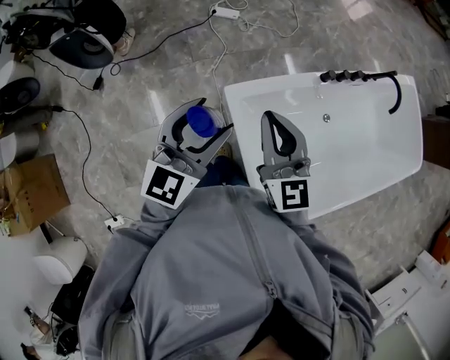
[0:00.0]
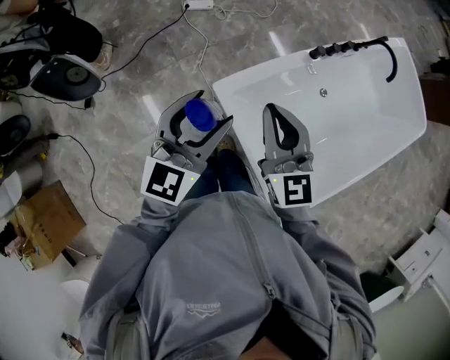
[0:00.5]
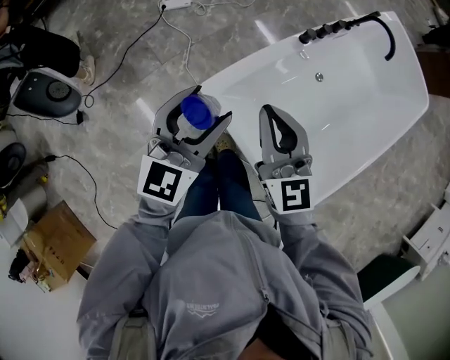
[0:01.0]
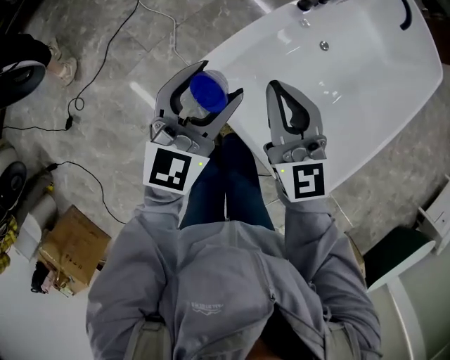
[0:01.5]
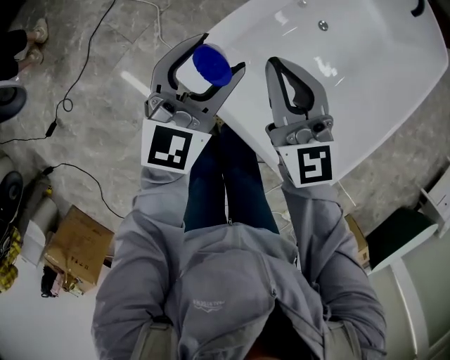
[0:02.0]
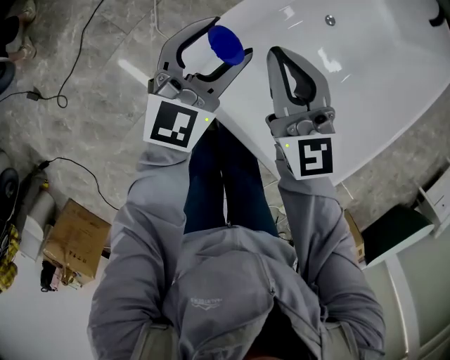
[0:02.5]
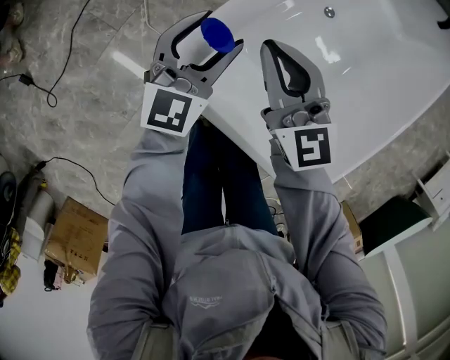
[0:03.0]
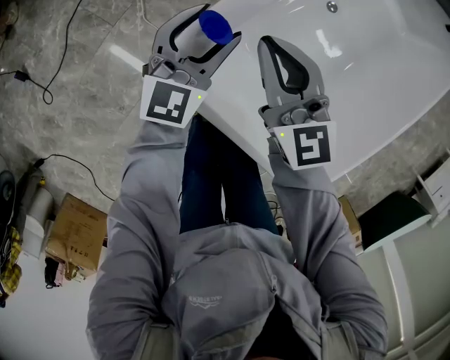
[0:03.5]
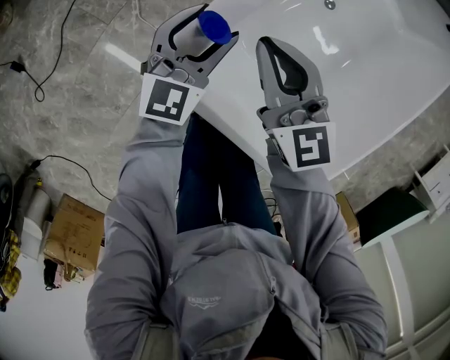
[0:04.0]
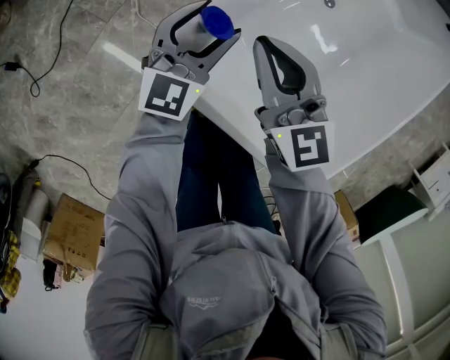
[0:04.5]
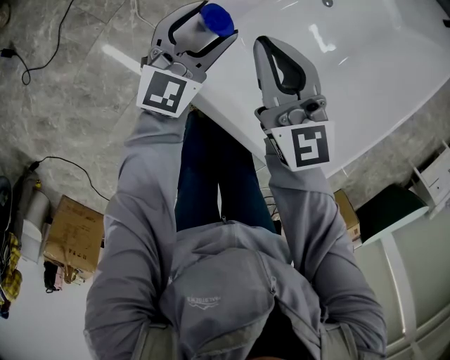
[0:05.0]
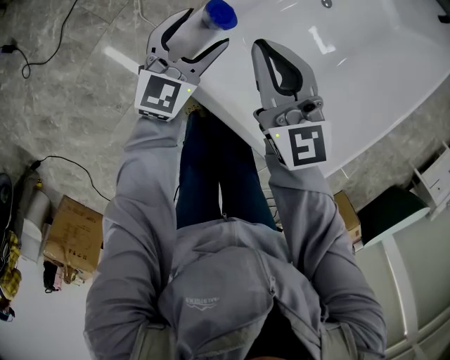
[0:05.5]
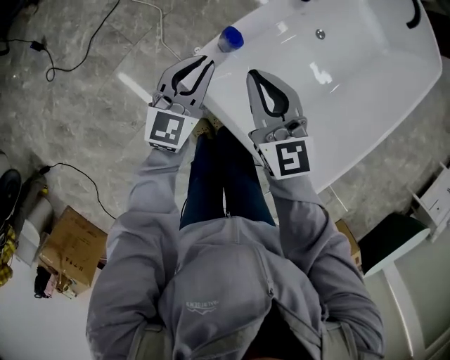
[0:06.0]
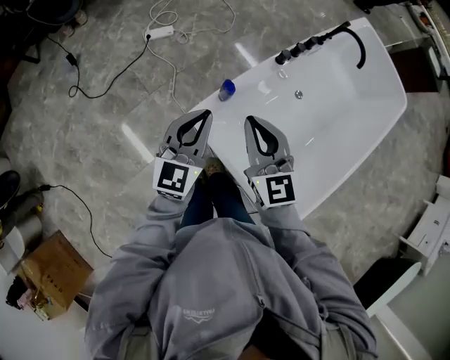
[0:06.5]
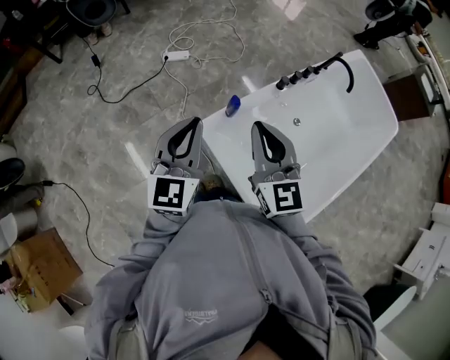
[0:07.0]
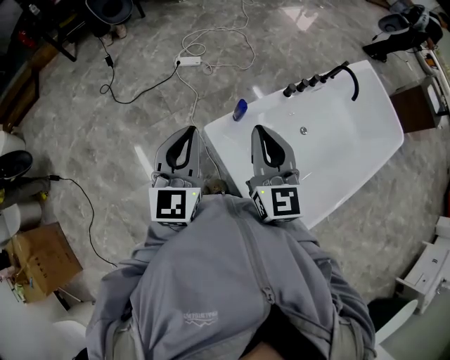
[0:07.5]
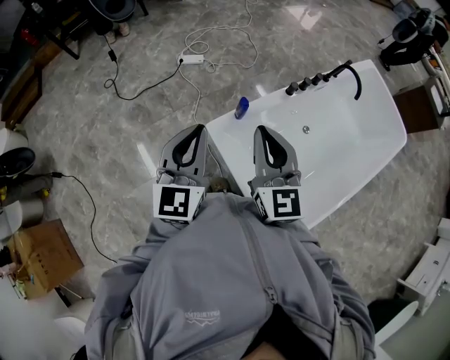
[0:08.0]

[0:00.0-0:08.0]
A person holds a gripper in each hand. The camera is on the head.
0:00.0 to 0:02.0: The grippers both shift downward, forward and to the right by some 25 cm. The right gripper rotates some 20 degrees, while the left gripper turns by approximately 30 degrees.
0:02.0 to 0:04.0: Both grippers move downward and forward, some 15 cm.
0:04.0 to 0:06.0: The left gripper moves upward, to the left and backward, roughly 10 cm, and closes up; the right gripper heads upward and backward, covering some 10 cm.
0:06.0 to 0:08.0: Both grippers travel together upward and backward, roughly 35 cm. The left gripper changes its angle by some 30 degrees.

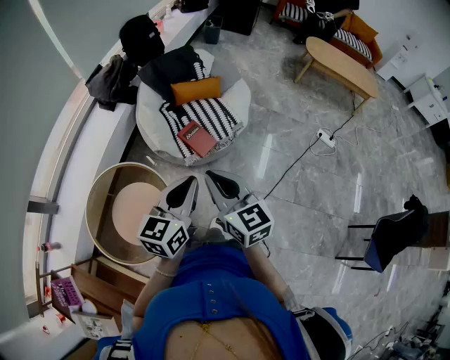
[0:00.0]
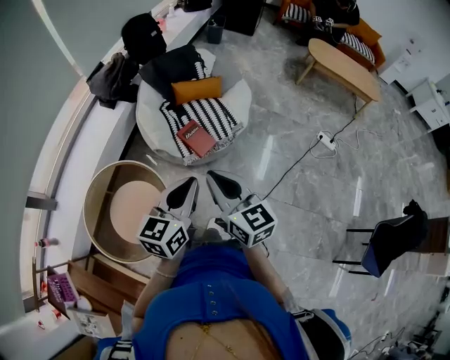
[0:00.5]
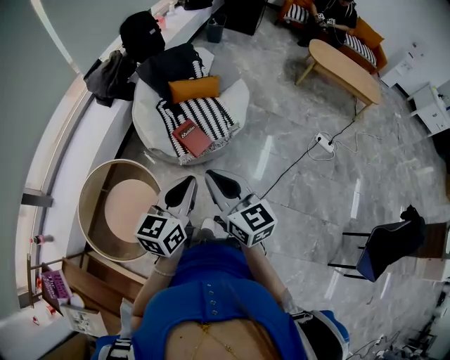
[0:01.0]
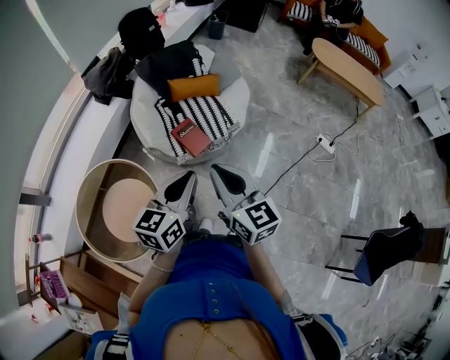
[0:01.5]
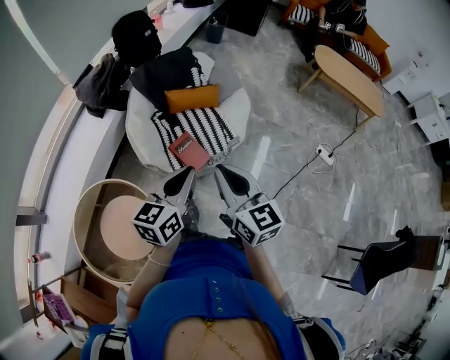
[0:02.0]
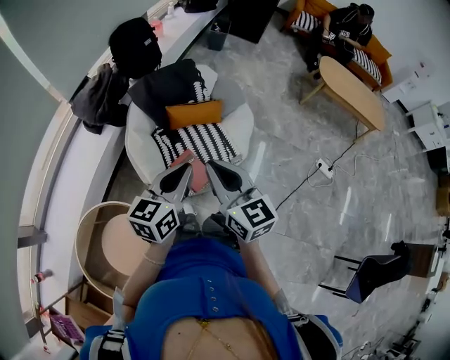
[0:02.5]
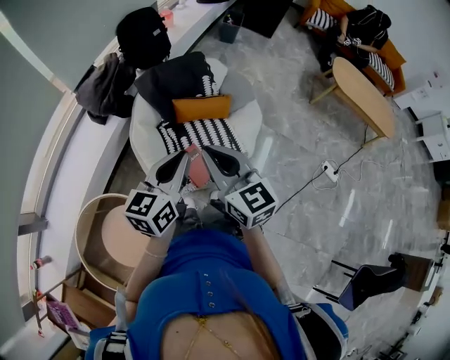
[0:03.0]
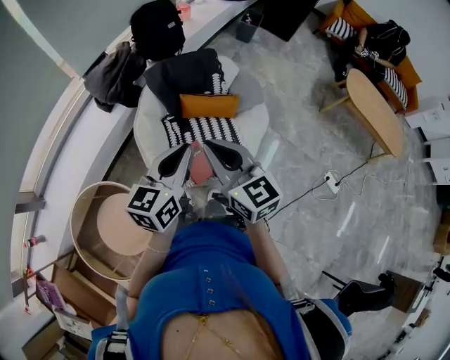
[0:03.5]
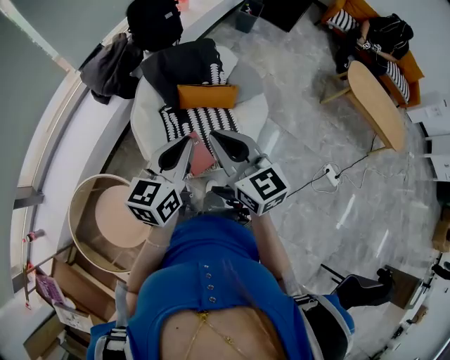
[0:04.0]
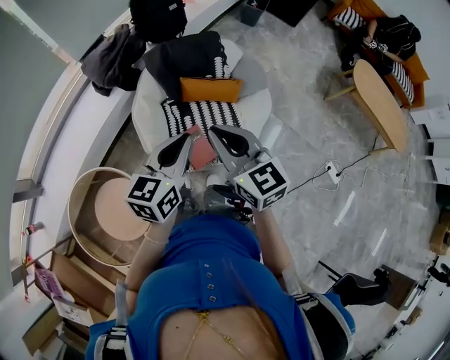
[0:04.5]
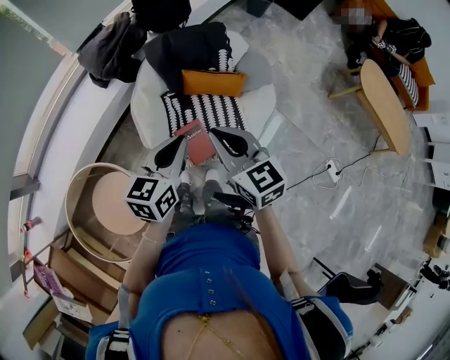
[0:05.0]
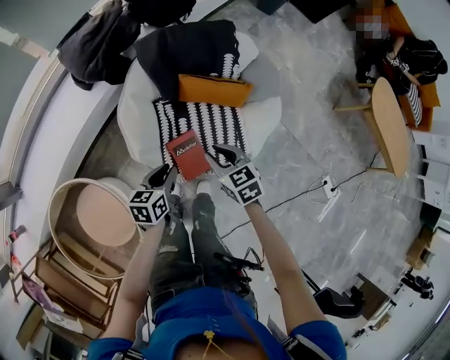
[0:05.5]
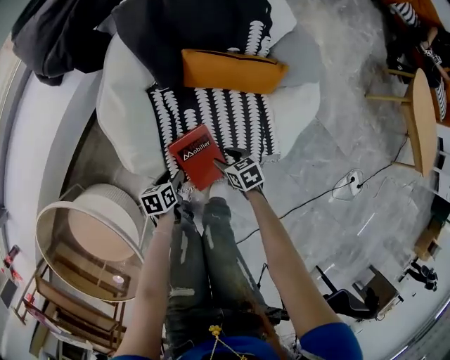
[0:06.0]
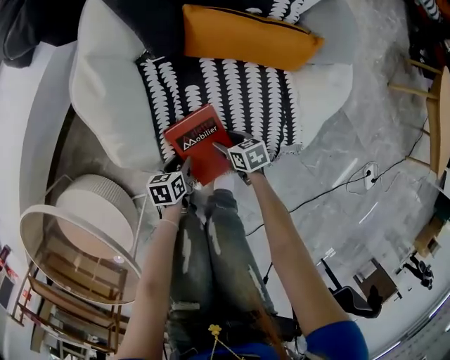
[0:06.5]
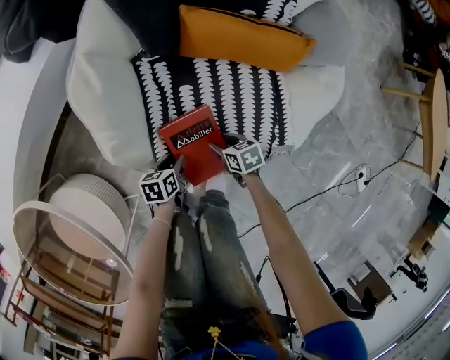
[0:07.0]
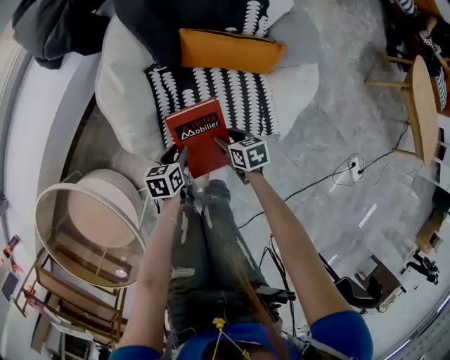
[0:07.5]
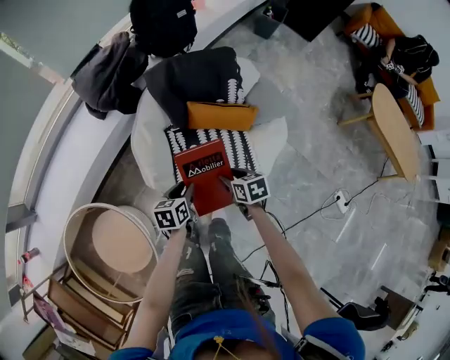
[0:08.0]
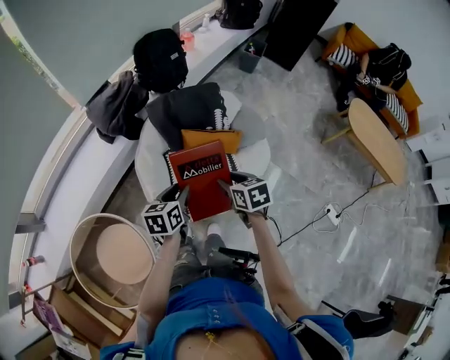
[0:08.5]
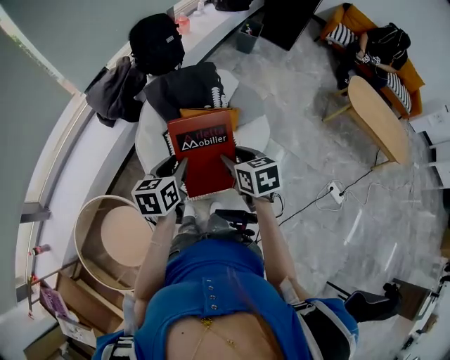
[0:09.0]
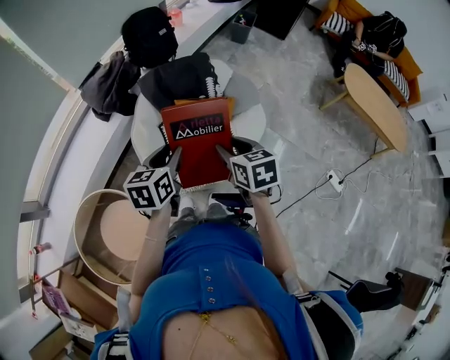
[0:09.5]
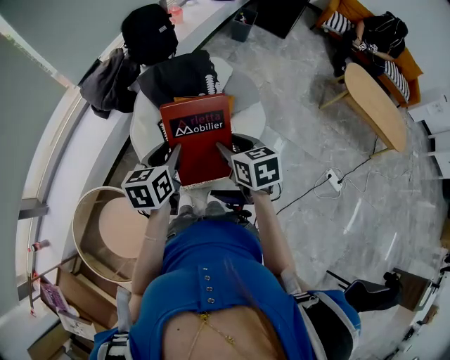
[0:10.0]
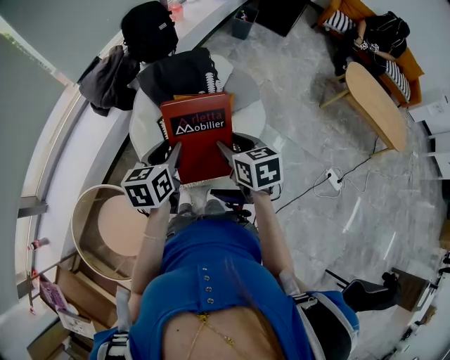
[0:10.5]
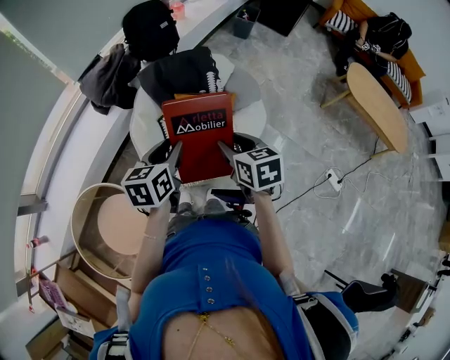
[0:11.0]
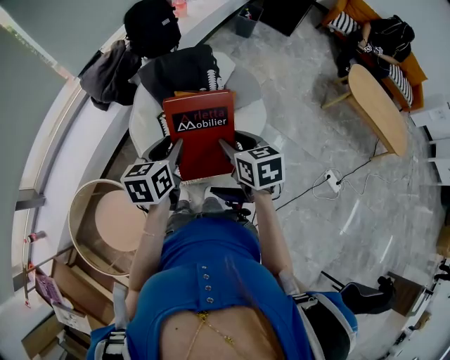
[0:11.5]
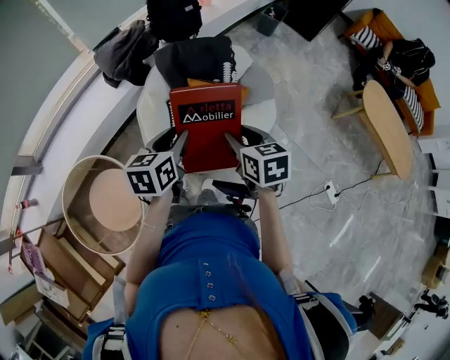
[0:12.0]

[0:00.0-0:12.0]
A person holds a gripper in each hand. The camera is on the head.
0:00.0 to 0:02.0: The two grippers go some 20 cm forward.
0:02.0 to 0:04.0: Both grippers move forward, approximately 25 cm.
0:04.0 to 0:06.0: Both grippers travel together downward, roughly 70 cm. The right gripper angles its fingers downward, by some 50 degrees, and opens its fingers; the left gripper tips its fingers downward by approximately 50 degrees, and opens its fingers.
0:06.0 to 0:08.0: The grippers both shift upward by roughly 30 cm.
0:08.0 to 0:10.0: Both grippers move upward, approximately 30 cm. The right gripper turns by about 20 degrees.
0:10.0 to 0:12.0: The grippers move only a little.

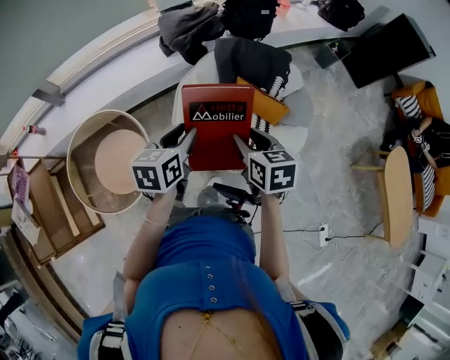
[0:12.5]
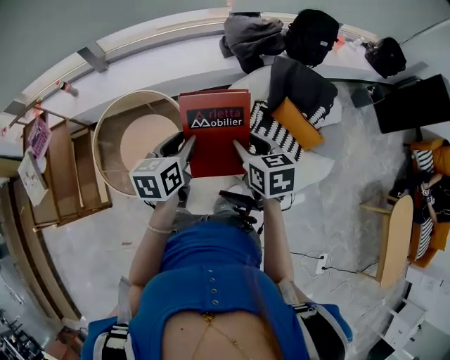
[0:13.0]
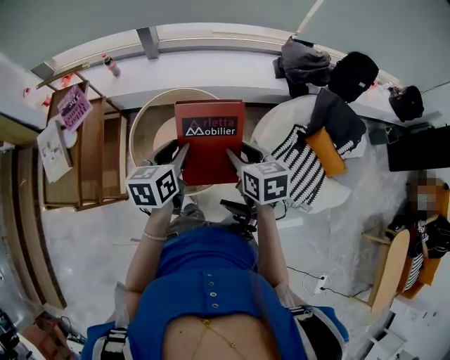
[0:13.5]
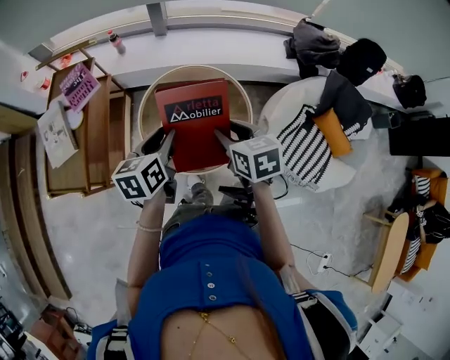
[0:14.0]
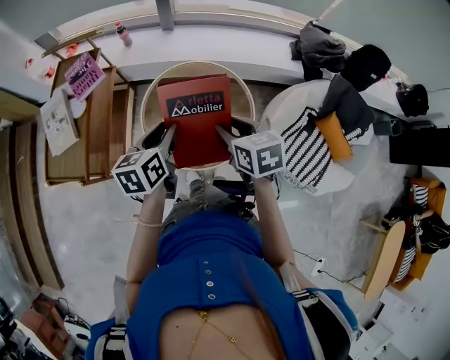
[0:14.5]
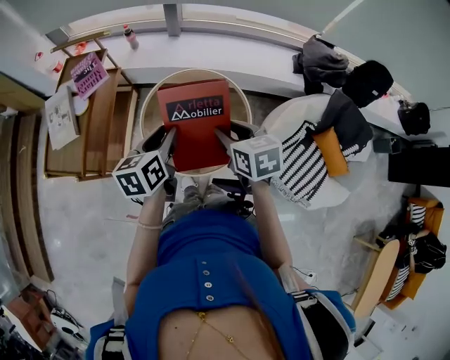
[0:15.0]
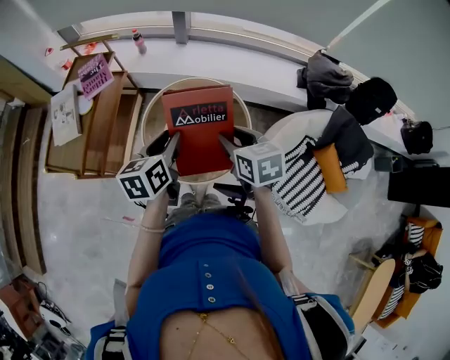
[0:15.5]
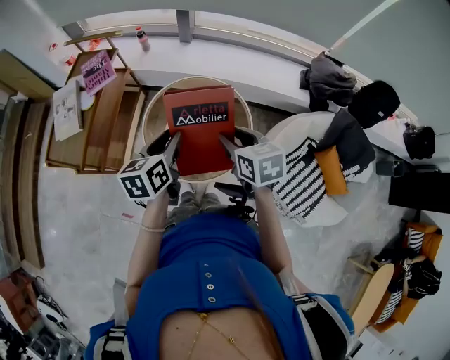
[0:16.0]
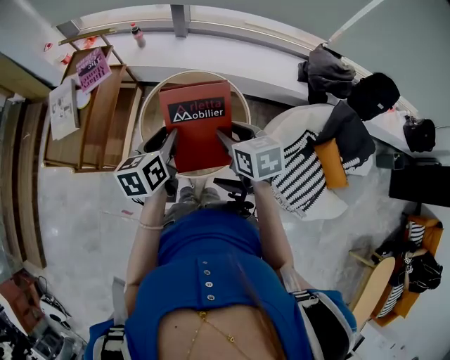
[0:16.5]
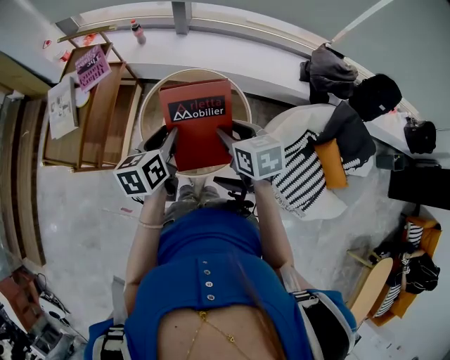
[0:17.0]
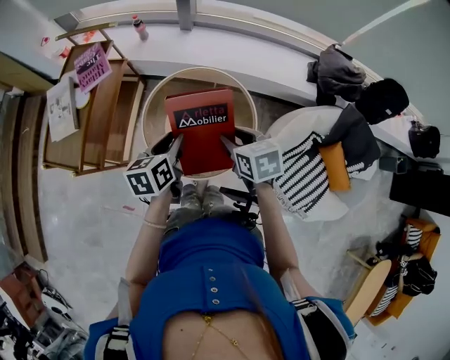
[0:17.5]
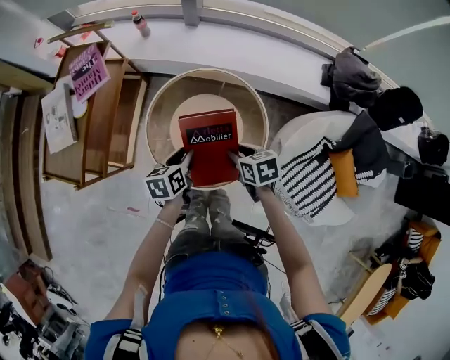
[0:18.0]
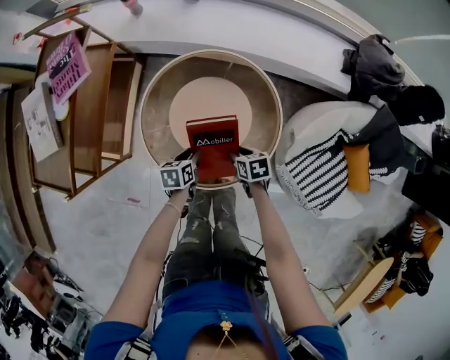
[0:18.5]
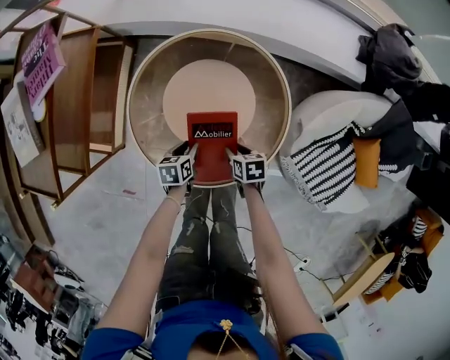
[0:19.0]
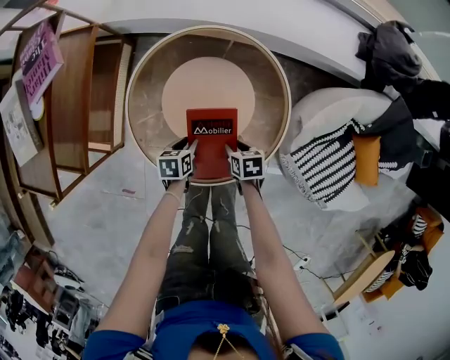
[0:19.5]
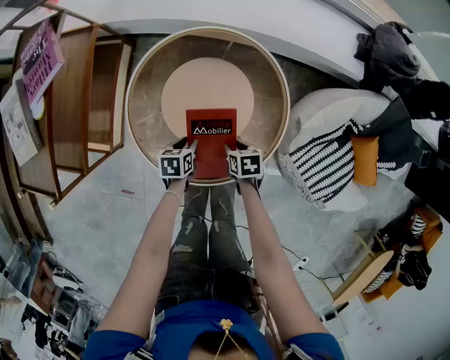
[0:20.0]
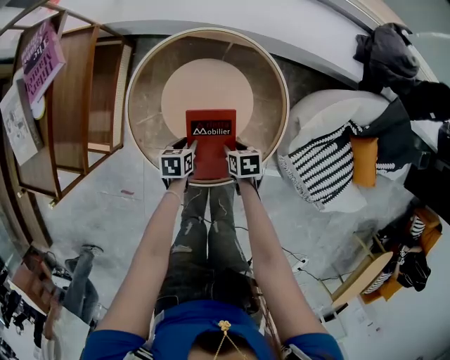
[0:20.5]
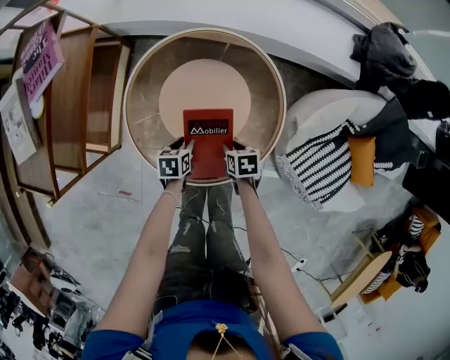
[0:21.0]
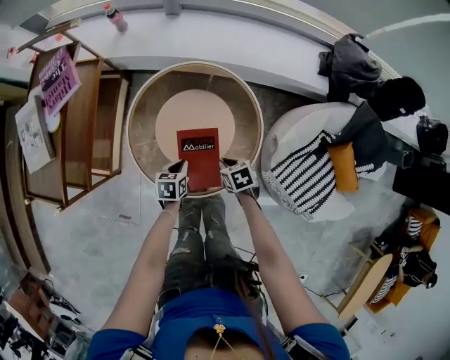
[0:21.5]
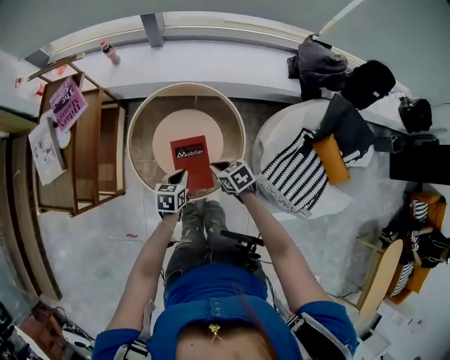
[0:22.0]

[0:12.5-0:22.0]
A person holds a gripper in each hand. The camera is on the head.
0:12.5 to 0:14.5: Both grippers are carried about 60 cm. The left gripper swivels about 40 degrees, while the right gripper changes its angle by some 40 degrees.
0:14.5 to 0:16.5: The grippers both shift to the right by about 5 cm.
0:16.5 to 0:18.0: Both grippers move downward, approximately 20 cm.
0:18.0 to 0:20.0: Both grippers move downward, roughly 30 cm. The left gripper swivels about 20 degrees.
0:20.0 to 0:22.0: Both grippers move upward, about 20 cm. The left gripper swivels approximately 20 degrees, and closes; the right gripper swivels some 30 degrees, and closes its fingers.
